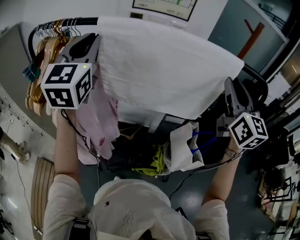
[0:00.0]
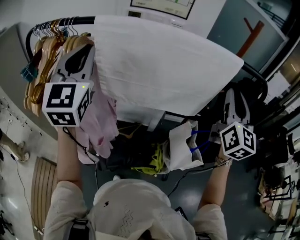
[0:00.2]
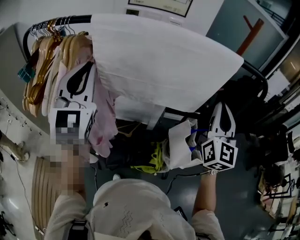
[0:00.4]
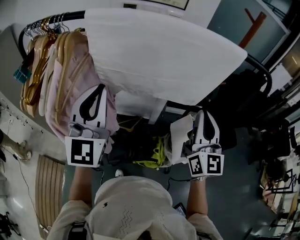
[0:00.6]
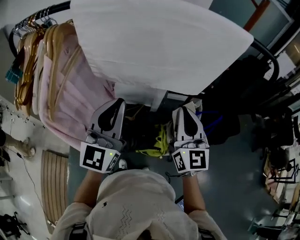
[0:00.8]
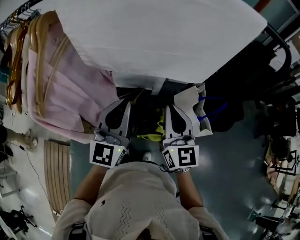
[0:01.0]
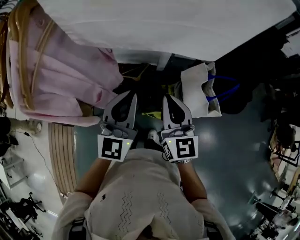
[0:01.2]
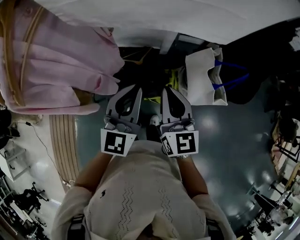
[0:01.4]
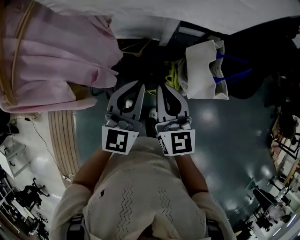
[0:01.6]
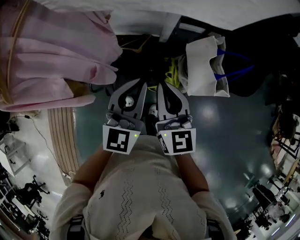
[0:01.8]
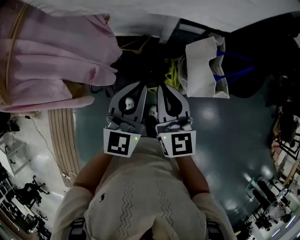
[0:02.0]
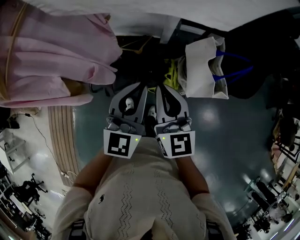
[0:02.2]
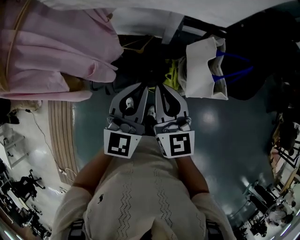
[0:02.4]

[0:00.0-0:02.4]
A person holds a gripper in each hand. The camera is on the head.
0:00.0 to 0:01.2: The left gripper moves downward and to the right, about 35 cm, and turns by about 20 degrees; the right gripper shifts some 30 cm downward.
0:01.2 to 0:02.4: The left gripper is displaced to the right and downward by some 10 cm. Meanwhile the right gripper ends up about 5 cm from where it was.

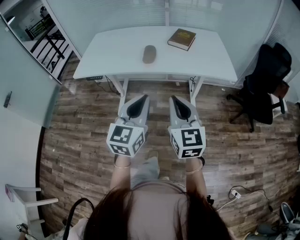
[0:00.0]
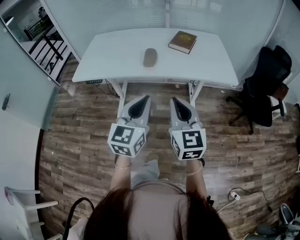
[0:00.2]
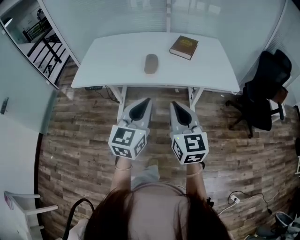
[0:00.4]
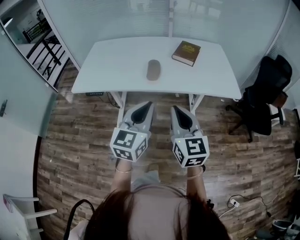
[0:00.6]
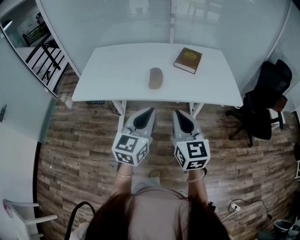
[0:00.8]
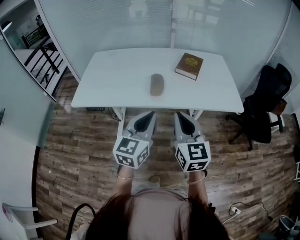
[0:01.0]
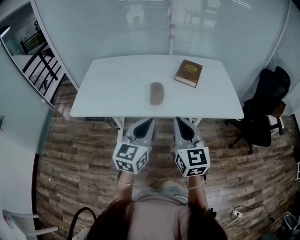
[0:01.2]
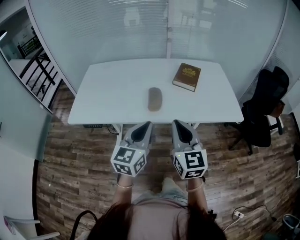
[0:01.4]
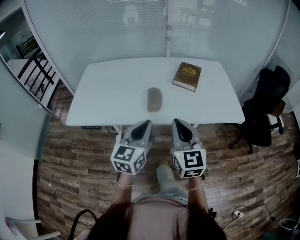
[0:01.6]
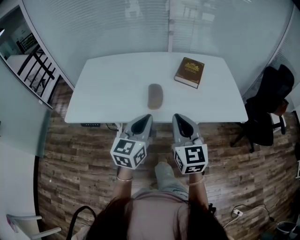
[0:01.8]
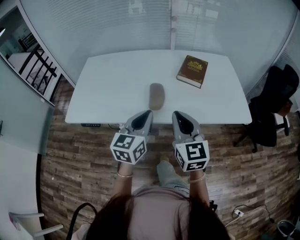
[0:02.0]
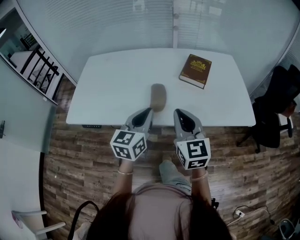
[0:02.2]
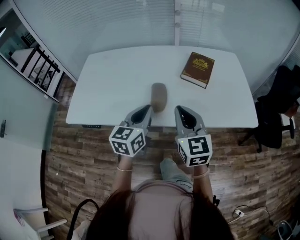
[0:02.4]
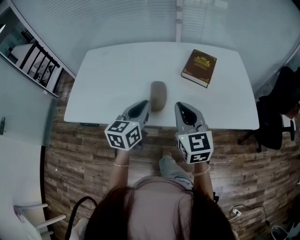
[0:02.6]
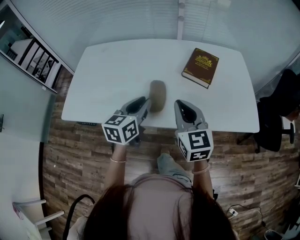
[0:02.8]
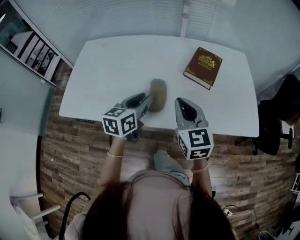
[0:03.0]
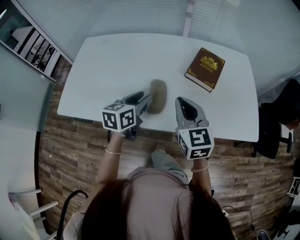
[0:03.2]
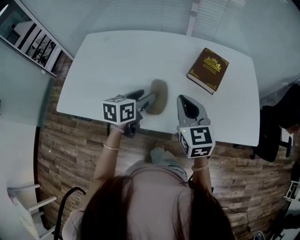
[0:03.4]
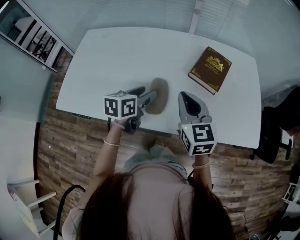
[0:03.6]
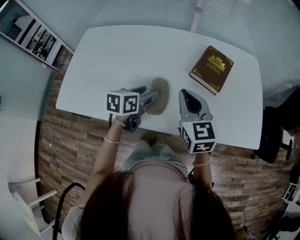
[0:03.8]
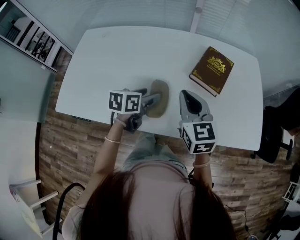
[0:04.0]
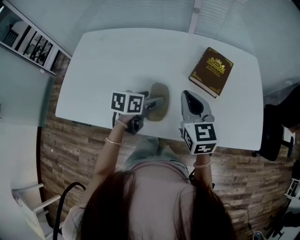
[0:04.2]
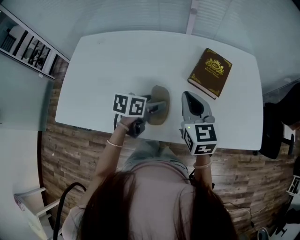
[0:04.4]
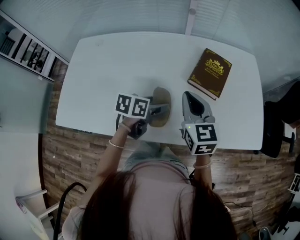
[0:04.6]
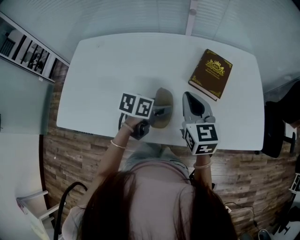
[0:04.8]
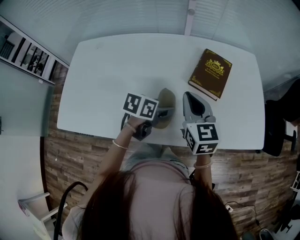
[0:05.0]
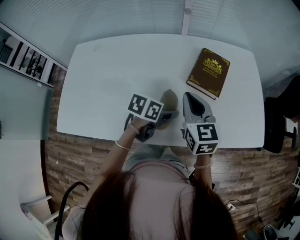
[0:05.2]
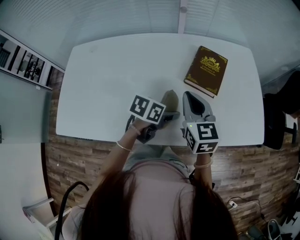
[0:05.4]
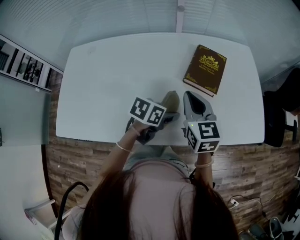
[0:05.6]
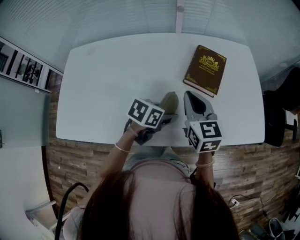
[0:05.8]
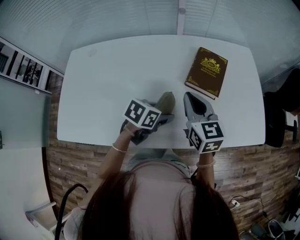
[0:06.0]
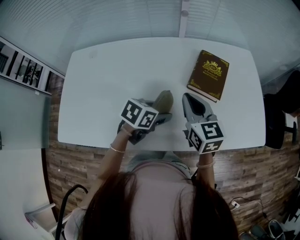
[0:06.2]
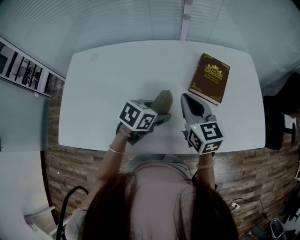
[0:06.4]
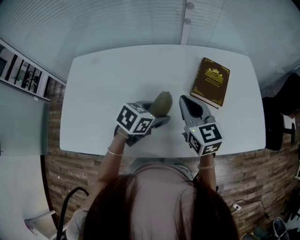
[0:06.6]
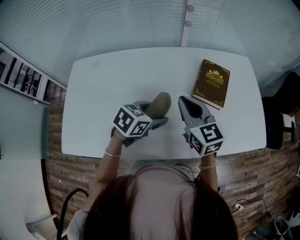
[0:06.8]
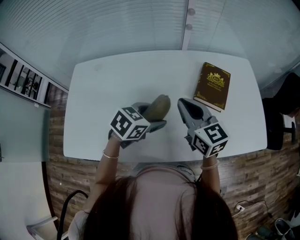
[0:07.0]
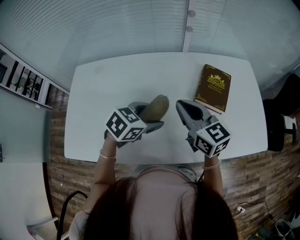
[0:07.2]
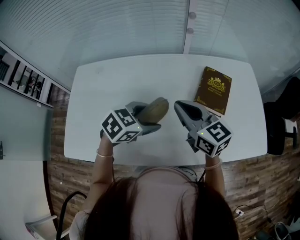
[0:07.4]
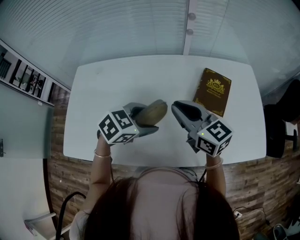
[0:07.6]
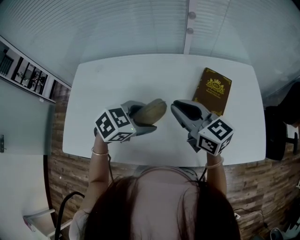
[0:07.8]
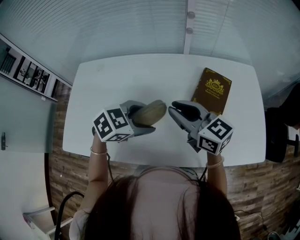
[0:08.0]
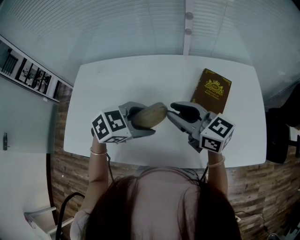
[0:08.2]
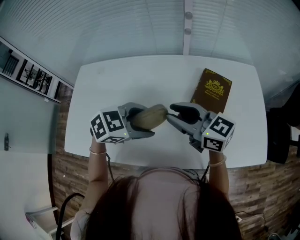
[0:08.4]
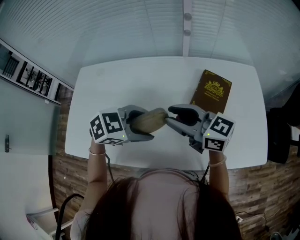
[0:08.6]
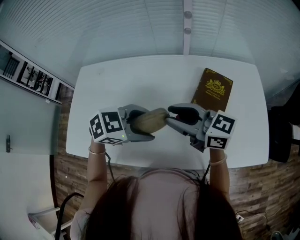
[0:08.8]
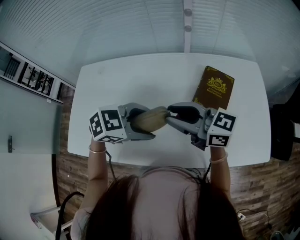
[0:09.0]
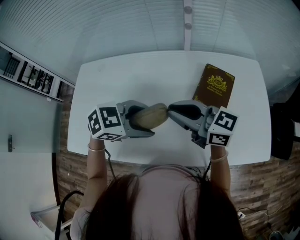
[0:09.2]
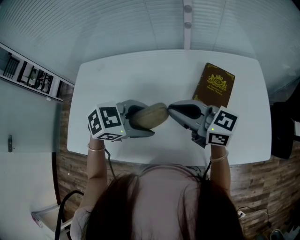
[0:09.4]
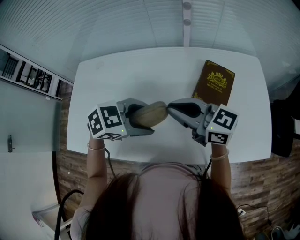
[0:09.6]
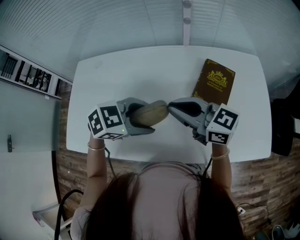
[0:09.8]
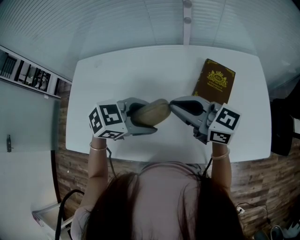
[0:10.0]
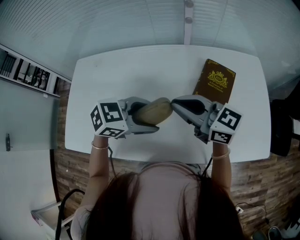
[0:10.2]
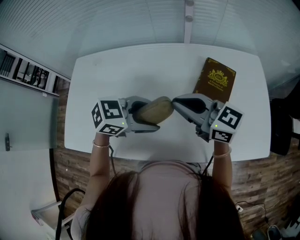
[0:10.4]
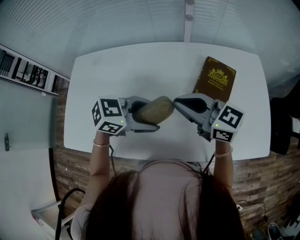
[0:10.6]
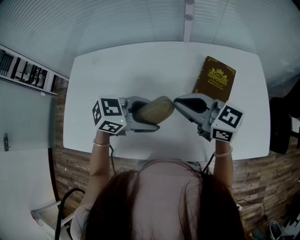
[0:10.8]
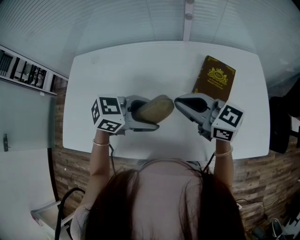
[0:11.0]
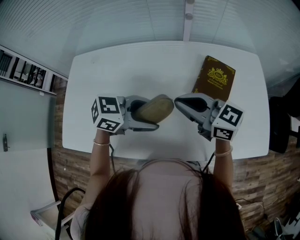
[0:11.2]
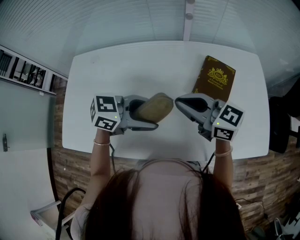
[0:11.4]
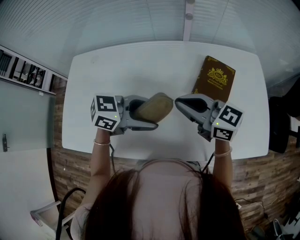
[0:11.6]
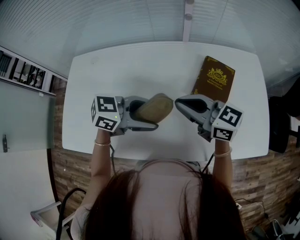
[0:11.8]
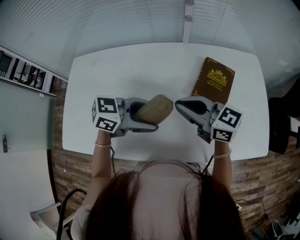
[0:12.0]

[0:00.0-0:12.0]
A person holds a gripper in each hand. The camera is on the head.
0:00.0 to 0:01.6: The right gripper goes approximately 20 cm forward. Meanwhile the left gripper travels forward and to the left by some 25 cm.
0:01.6 to 0:03.0: The right gripper is displaced forward by approximately 20 cm. Meanwhile the left gripper heads forward and downward, covering approximately 20 cm, and rotates roughly 20 degrees.
0:03.0 to 0:04.4: The left gripper heads downward and forward, covering approximately 10 cm, changes its angle by roughly 30 degrees, and opens up. Meanwhile the right gripper moves forward, approximately 10 cm.
0:04.4 to 0:06.0: The left gripper swivels approximately 20 degrees.
0:06.0 to 0:07.6: The left gripper travels upward and to the left by roughly 15 cm, and swivels about 30 degrees, while the right gripper shifts some 10 cm to the left and upward, and rotates about 30 degrees.
0:07.6 to 0:09.0: The right gripper rotates approximately 30 degrees, and opens its fingers.
0:09.0 to 0:10.4: The right gripper closes its fingers.
0:10.4 to 0:12.0: The grippers make only small movements.

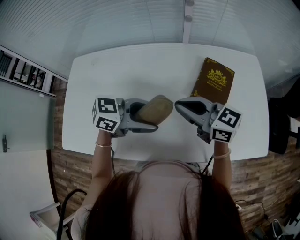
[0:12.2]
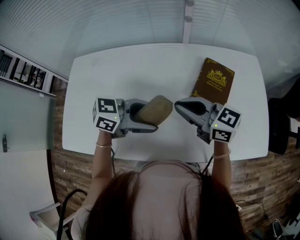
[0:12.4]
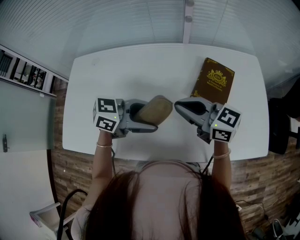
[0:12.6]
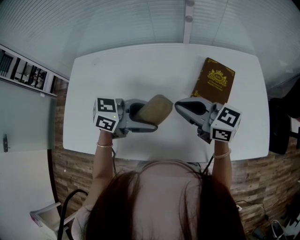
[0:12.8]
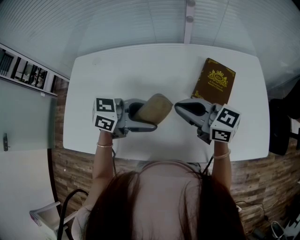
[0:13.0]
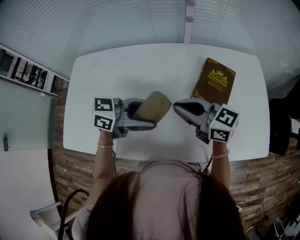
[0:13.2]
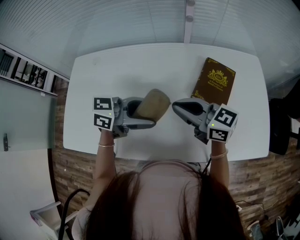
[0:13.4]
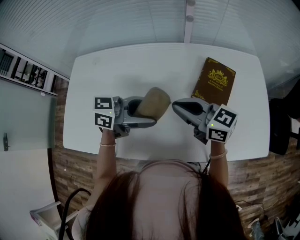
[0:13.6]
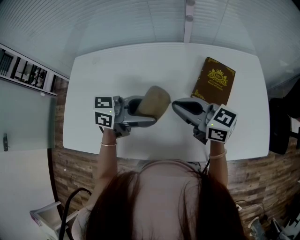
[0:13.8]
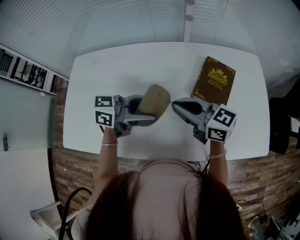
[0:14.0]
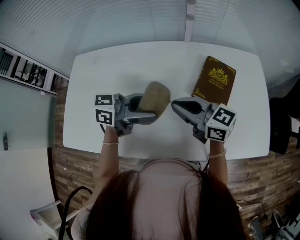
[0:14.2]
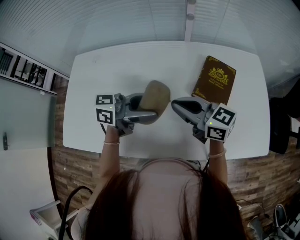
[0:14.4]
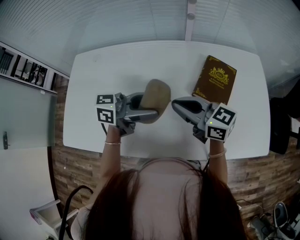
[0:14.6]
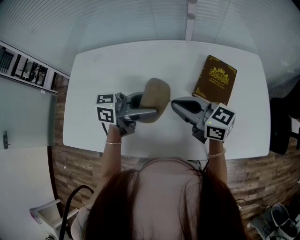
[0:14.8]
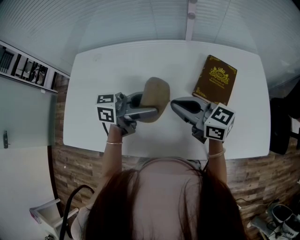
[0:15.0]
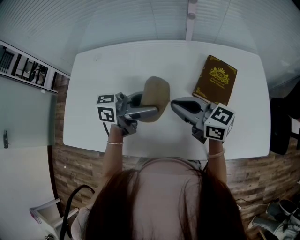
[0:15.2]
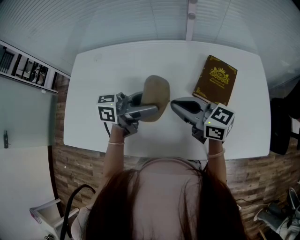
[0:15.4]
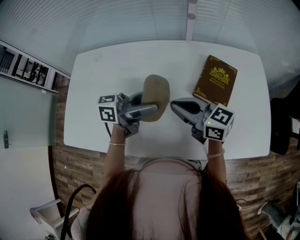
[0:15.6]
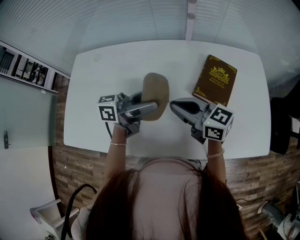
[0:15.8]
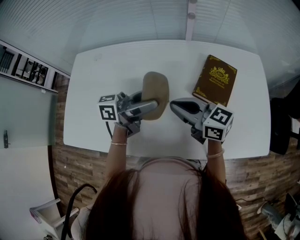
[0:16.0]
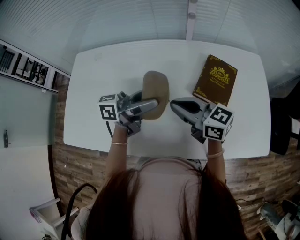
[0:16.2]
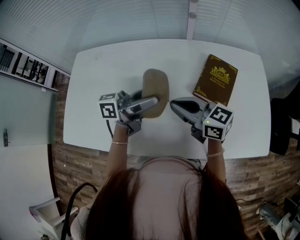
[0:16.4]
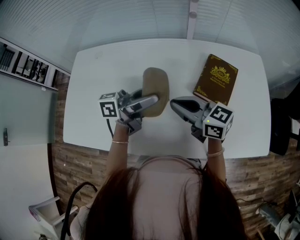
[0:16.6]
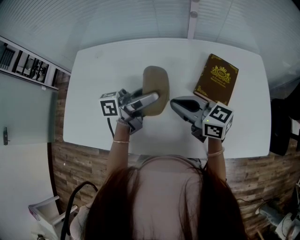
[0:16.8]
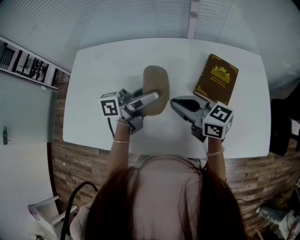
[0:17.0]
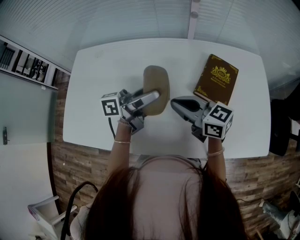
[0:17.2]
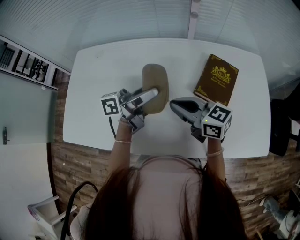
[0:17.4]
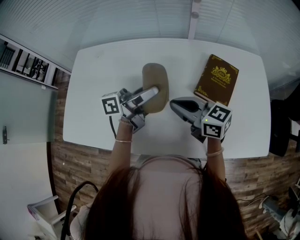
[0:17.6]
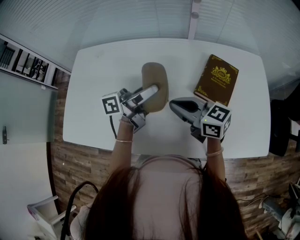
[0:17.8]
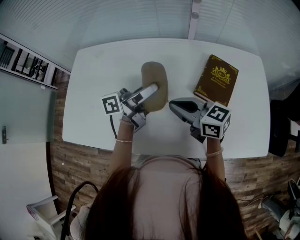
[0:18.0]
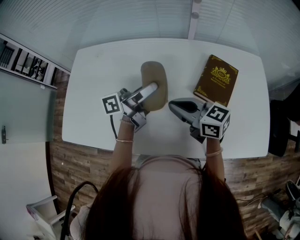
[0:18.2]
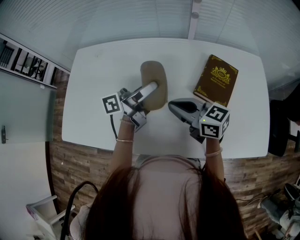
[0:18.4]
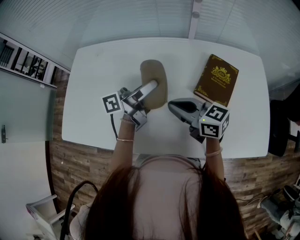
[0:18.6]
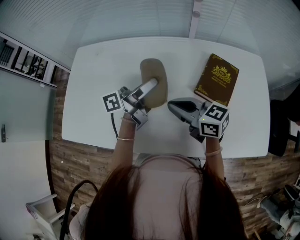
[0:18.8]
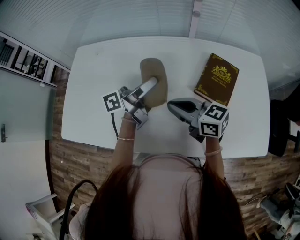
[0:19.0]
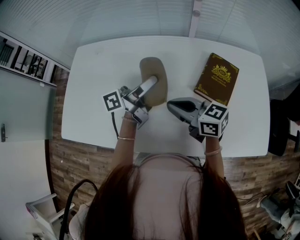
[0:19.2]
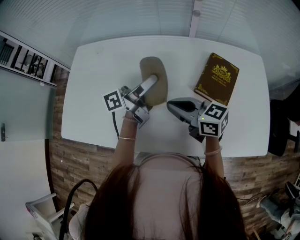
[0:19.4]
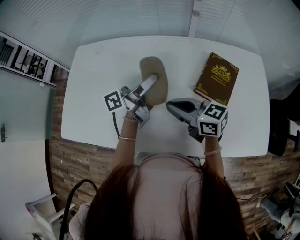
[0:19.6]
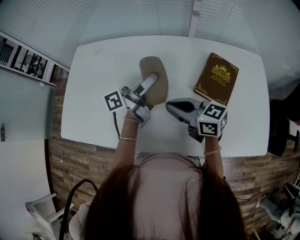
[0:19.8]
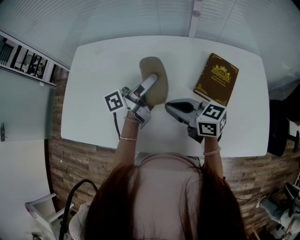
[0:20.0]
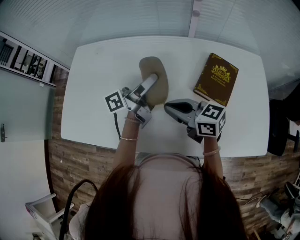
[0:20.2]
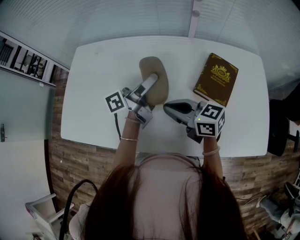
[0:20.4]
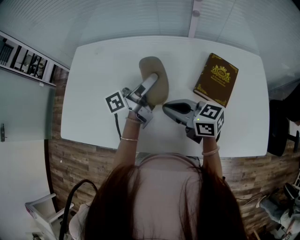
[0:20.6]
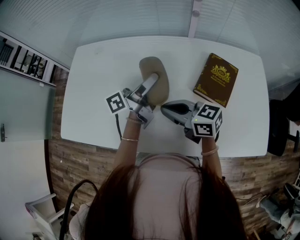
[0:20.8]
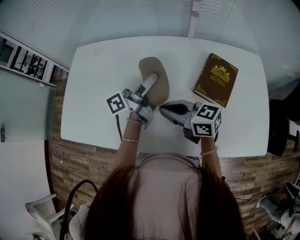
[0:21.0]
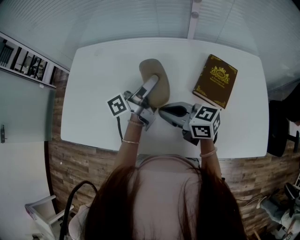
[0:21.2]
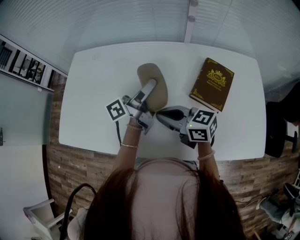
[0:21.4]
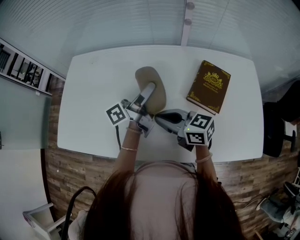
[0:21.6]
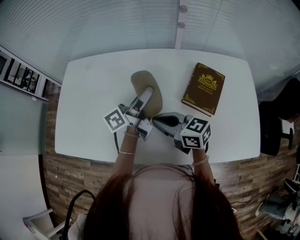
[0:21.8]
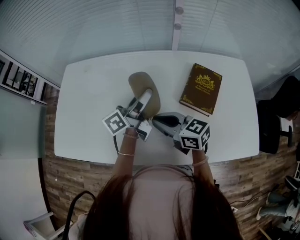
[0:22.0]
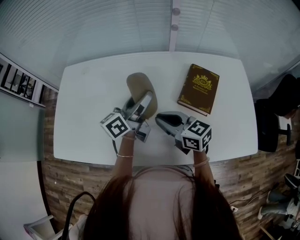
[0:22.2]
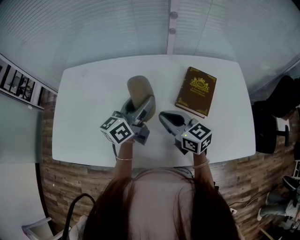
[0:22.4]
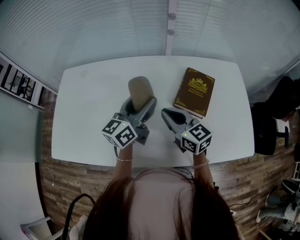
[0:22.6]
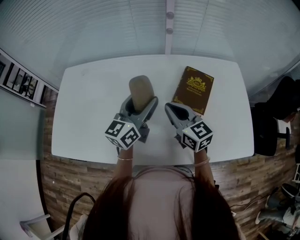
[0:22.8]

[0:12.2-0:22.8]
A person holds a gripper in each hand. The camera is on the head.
0:12.2 to 0:13.8: The grippers stay close to where they were, moving slightly.
0:13.8 to 0:15.2: The grippers make only small movements.
0:15.2 to 0:16.8: The grippers make only small movements.
0:16.8 to 0:18.2: The grippers make only small movements.
0:18.2 to 0:21.2: The grippers stay close to where they were, moving slightly.
0:21.2 to 0:22.8: The right gripper travels to the right by roughly 10 cm, and changes its angle by roughly 40 degrees. The left gripper moves approximately 5 cm, and rotates around the line of its fingers by roughly 60 degrees, clockwise from behind.
